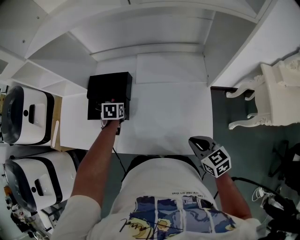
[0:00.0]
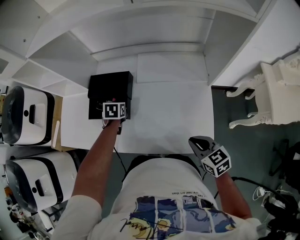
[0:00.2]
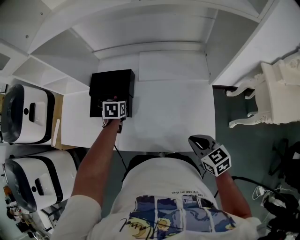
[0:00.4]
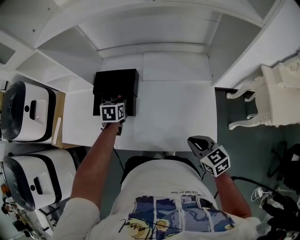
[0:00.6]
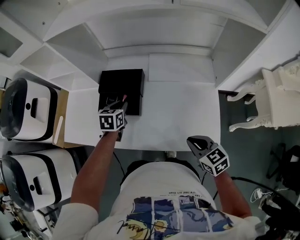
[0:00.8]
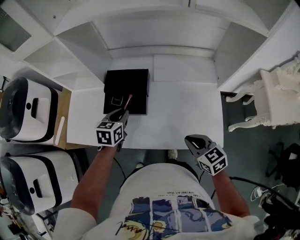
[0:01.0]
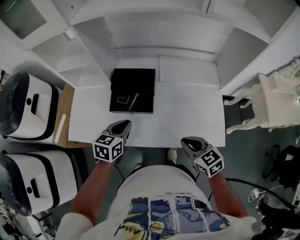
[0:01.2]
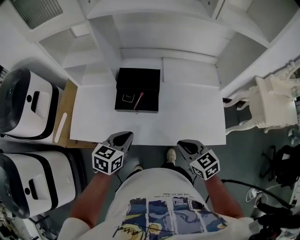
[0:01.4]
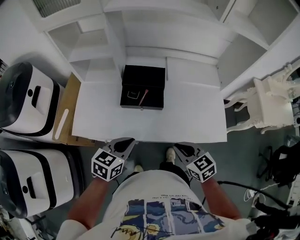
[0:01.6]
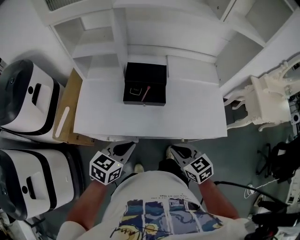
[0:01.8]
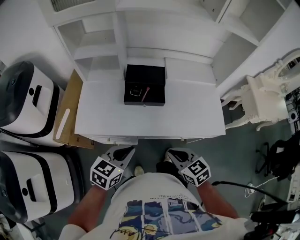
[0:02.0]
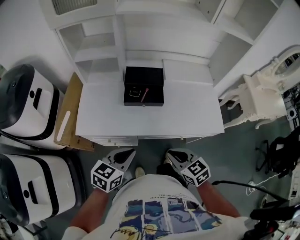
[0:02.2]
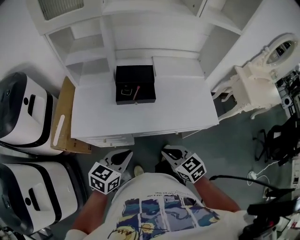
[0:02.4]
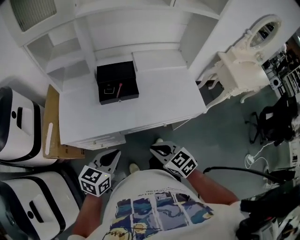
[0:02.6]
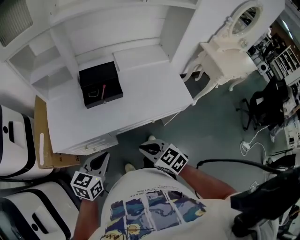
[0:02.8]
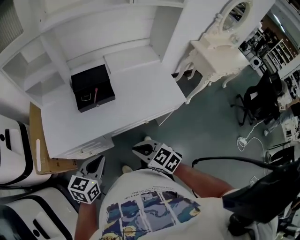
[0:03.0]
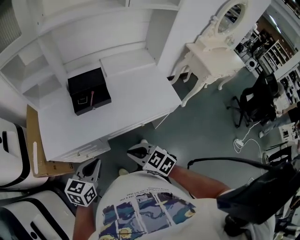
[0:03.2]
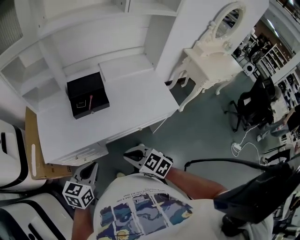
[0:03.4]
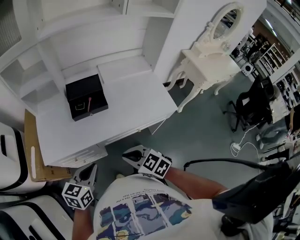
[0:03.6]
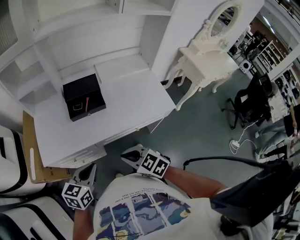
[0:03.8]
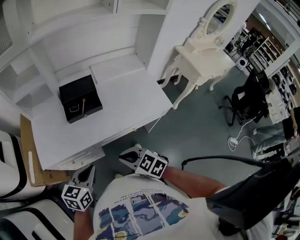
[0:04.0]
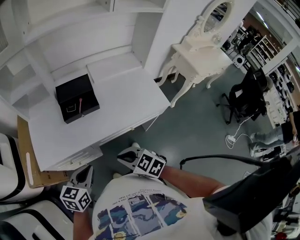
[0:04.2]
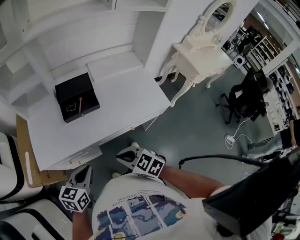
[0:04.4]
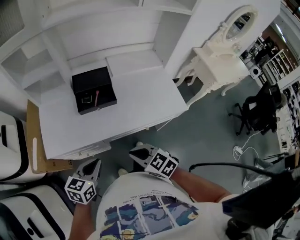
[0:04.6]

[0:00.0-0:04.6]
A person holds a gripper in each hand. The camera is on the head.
0:00.0 to 0:01.6: The right gripper shifts some 25 cm to the left; the left gripper goes some 35 cm backward, upward and to the left, and rotates approximately 40 degrees.
0:01.6 to 0:03.0: The right gripper goes about 15 cm backward and to the left; the left gripper shifts some 10 cm backward.
0:03.0 to 0:04.6: The grippers move only a little.

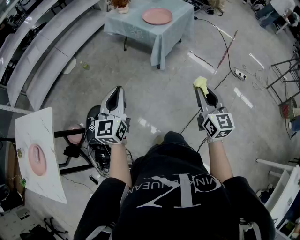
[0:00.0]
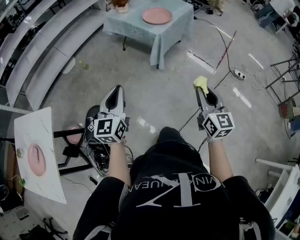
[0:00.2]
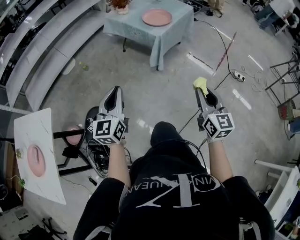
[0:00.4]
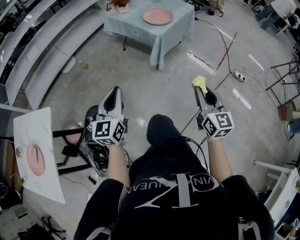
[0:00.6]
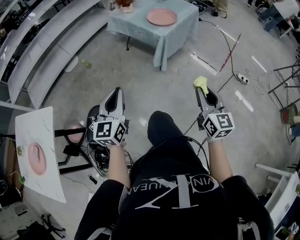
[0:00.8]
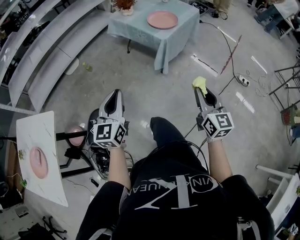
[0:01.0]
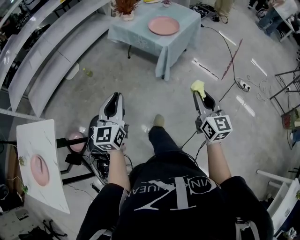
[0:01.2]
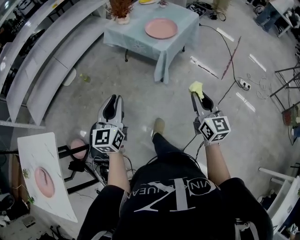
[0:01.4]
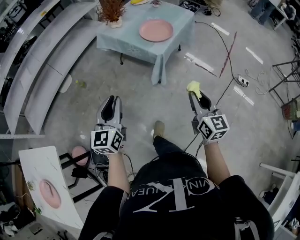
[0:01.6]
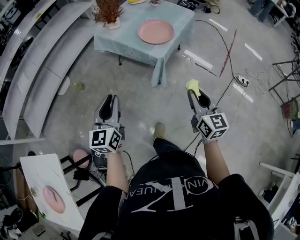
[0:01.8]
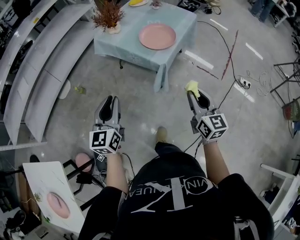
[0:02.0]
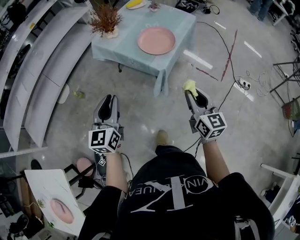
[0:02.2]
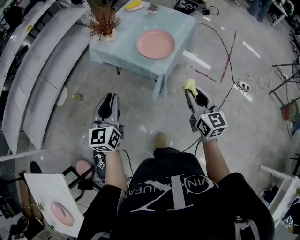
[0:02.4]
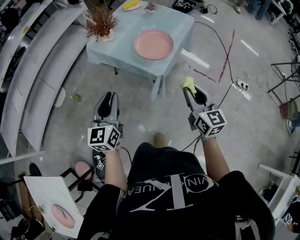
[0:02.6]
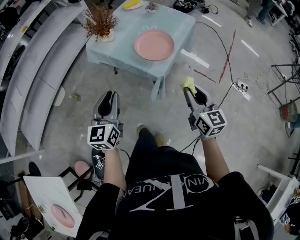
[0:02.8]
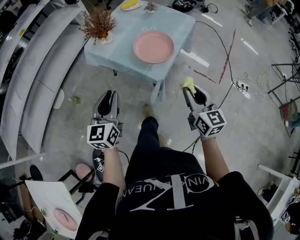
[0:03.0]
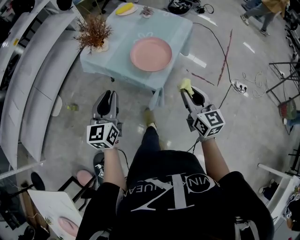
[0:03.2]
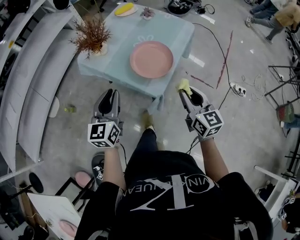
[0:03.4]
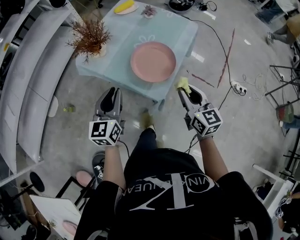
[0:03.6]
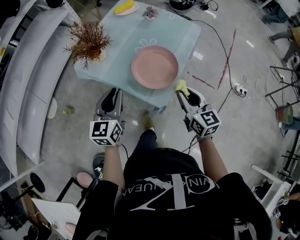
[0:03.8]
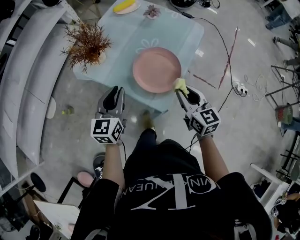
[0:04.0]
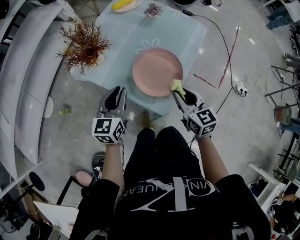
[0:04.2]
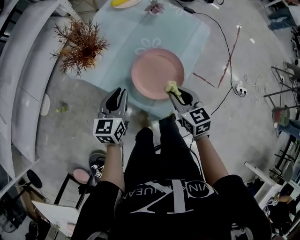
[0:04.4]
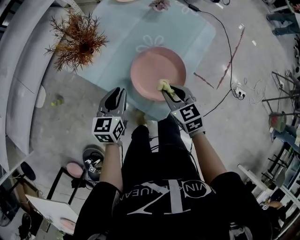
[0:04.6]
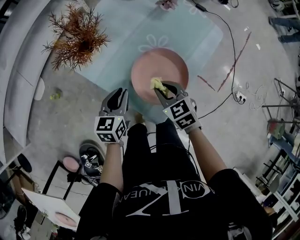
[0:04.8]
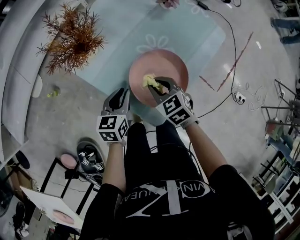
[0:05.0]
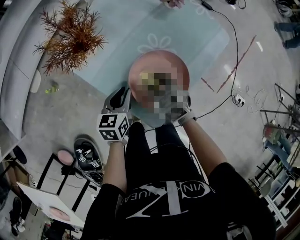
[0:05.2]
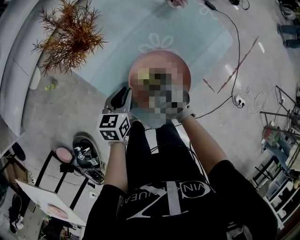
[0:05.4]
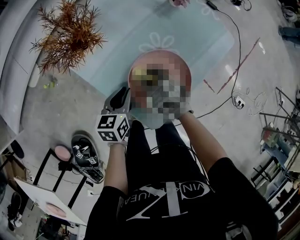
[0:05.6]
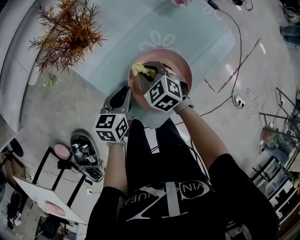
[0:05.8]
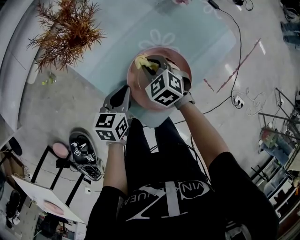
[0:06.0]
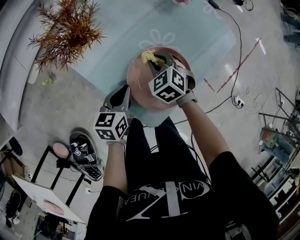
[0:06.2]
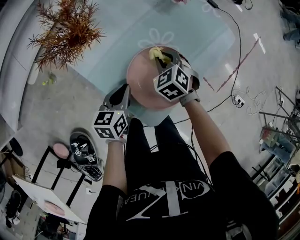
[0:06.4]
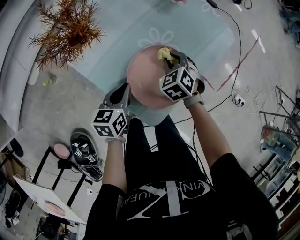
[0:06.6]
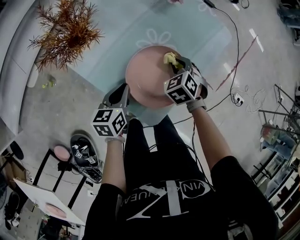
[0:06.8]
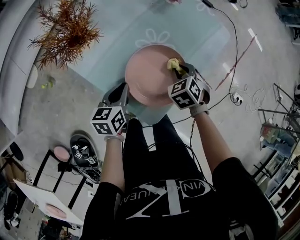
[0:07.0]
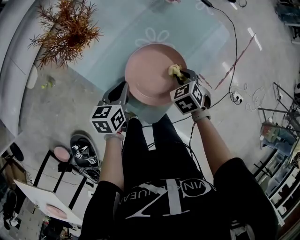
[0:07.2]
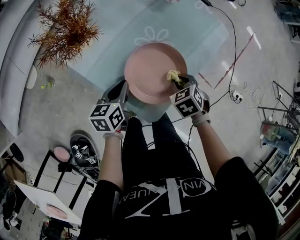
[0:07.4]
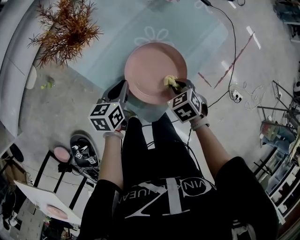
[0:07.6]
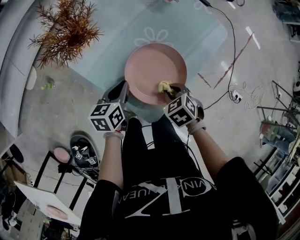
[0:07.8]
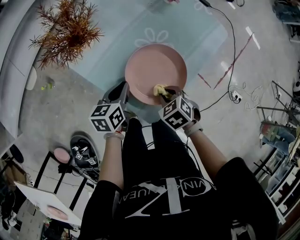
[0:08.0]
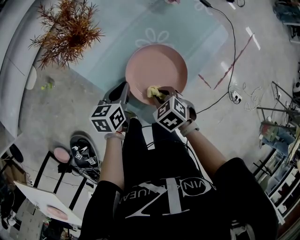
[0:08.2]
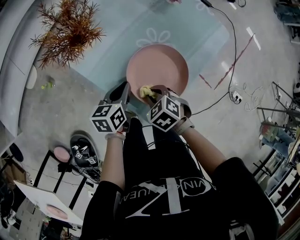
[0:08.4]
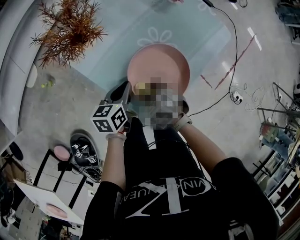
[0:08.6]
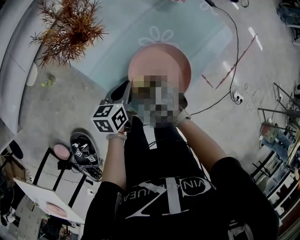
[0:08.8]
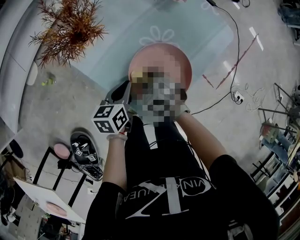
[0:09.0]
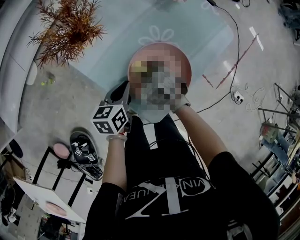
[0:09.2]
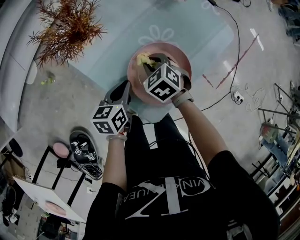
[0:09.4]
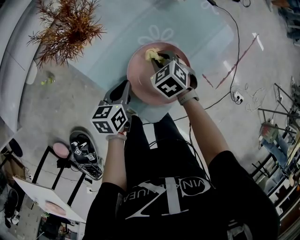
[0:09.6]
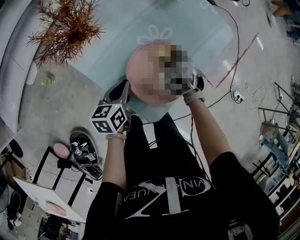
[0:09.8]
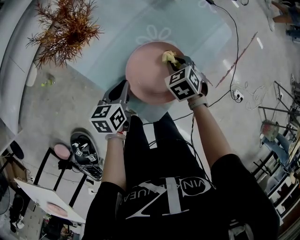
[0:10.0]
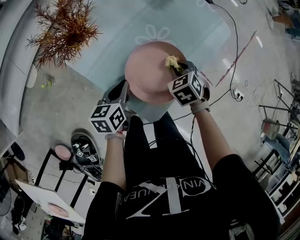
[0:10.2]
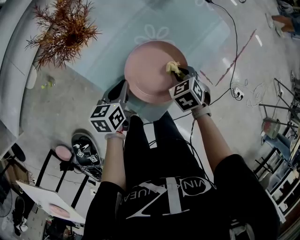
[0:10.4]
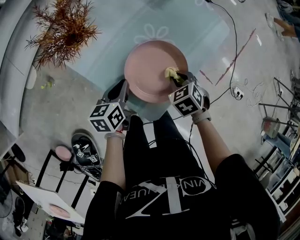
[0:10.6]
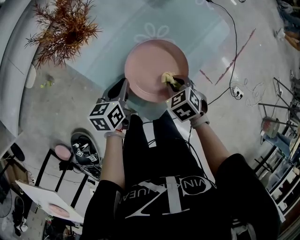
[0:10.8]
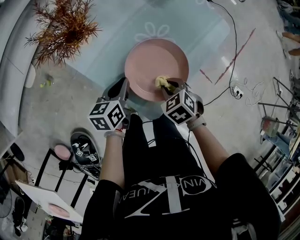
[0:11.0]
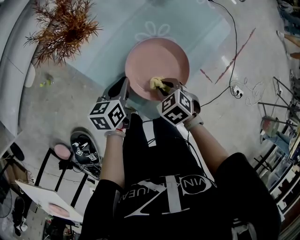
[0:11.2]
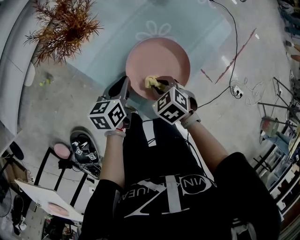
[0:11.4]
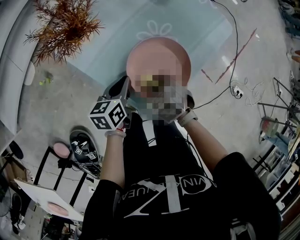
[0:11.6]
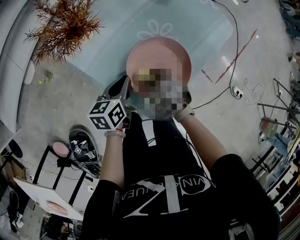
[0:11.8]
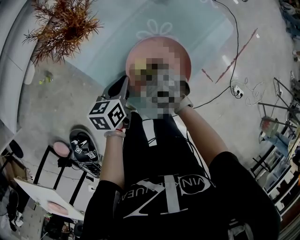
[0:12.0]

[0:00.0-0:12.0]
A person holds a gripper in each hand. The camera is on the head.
0:00.0 to 0:01.6: The grippers both shift forward by roughly 20 cm.
0:01.6 to 0:03.0: The two grippers go approximately 25 cm forward.
0:03.0 to 0:04.4: The two grippers go approximately 30 cm forward and downward. The right gripper rotates some 30 degrees.
0:04.4 to 0:06.0: The left gripper moves downward, some 10 cm, and swivels some 20 degrees. The right gripper shifts roughly 20 cm forward, downward and to the left, and rotates around the line of its fingers by roughly 40 degrees, counterclockwise from behind.
0:06.0 to 0:07.6: The right gripper moves to the right and backward, some 15 cm, and turns by about 30 degrees.
0:07.6 to 0:09.0: The right gripper travels to the left and forward by roughly 15 cm, and changes its angle by about 20 degrees.
0:09.0 to 0:10.4: The right gripper shifts approximately 15 cm to the right, and rotates some 20 degrees.
0:10.4 to 0:12.0: The right gripper moves to the left, approximately 15 cm.

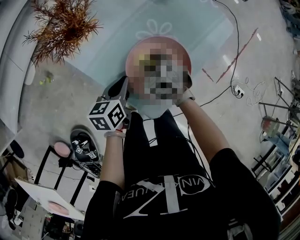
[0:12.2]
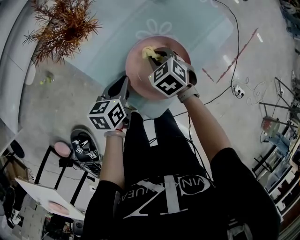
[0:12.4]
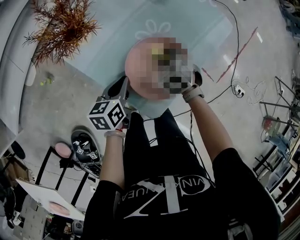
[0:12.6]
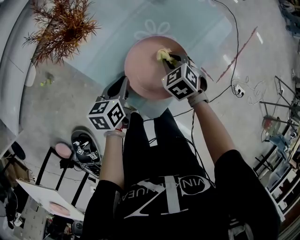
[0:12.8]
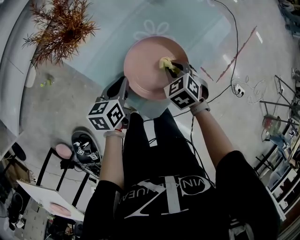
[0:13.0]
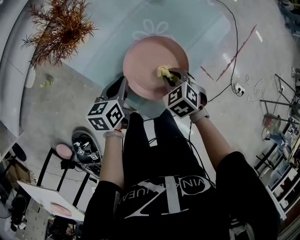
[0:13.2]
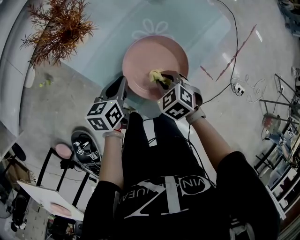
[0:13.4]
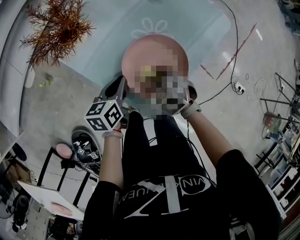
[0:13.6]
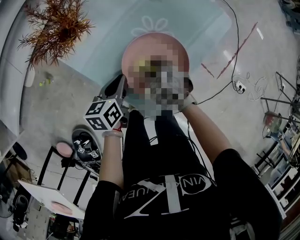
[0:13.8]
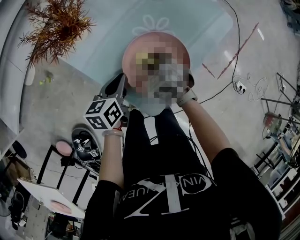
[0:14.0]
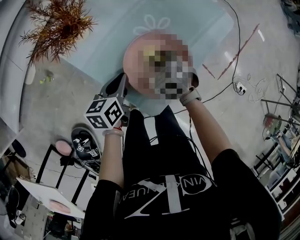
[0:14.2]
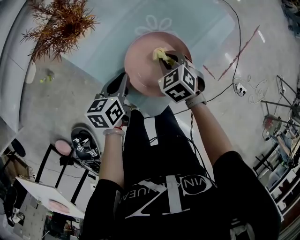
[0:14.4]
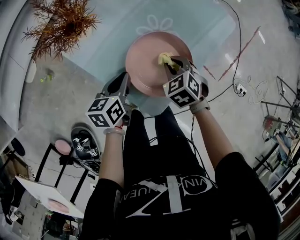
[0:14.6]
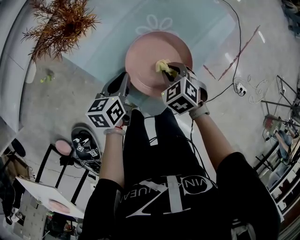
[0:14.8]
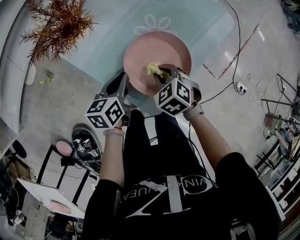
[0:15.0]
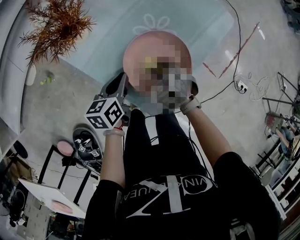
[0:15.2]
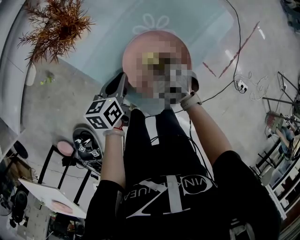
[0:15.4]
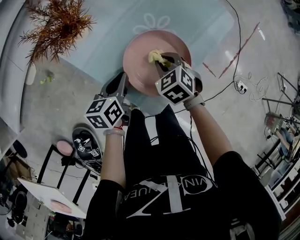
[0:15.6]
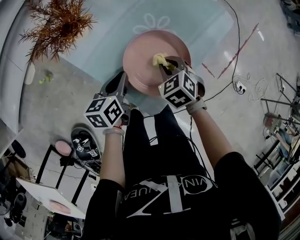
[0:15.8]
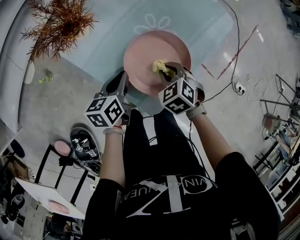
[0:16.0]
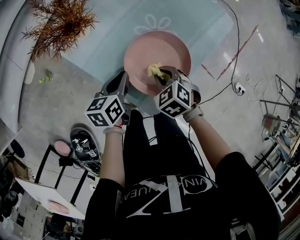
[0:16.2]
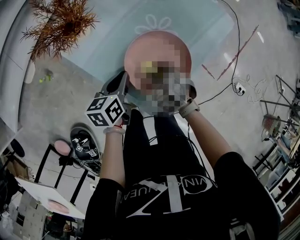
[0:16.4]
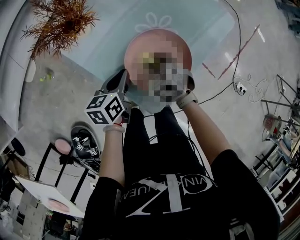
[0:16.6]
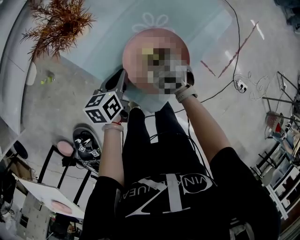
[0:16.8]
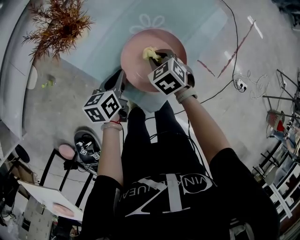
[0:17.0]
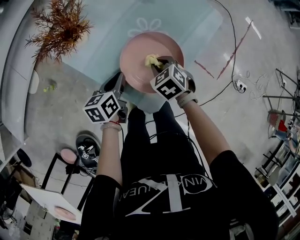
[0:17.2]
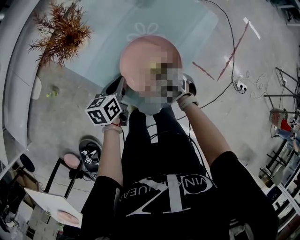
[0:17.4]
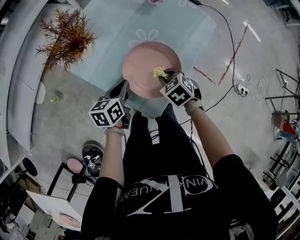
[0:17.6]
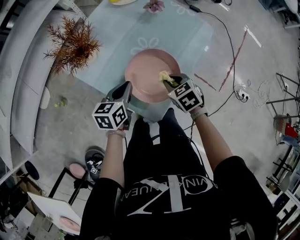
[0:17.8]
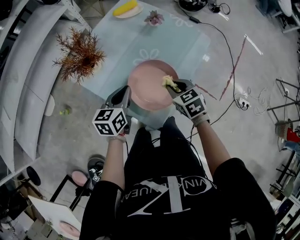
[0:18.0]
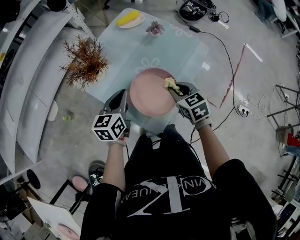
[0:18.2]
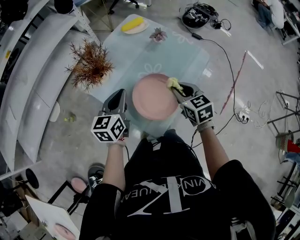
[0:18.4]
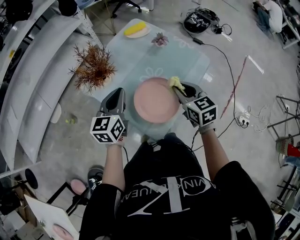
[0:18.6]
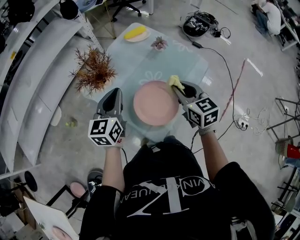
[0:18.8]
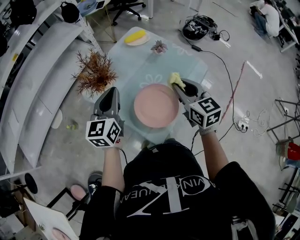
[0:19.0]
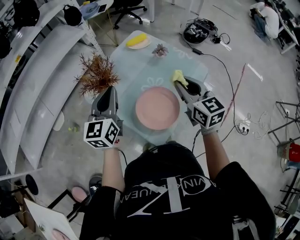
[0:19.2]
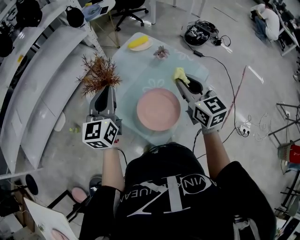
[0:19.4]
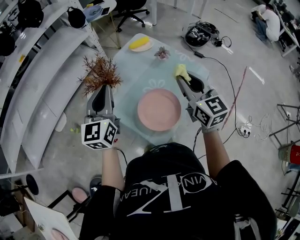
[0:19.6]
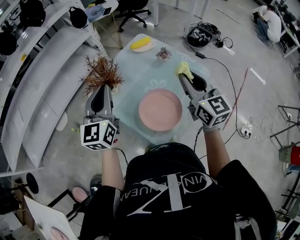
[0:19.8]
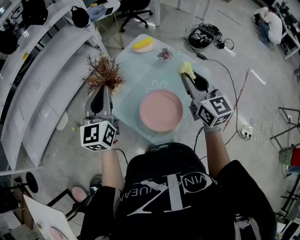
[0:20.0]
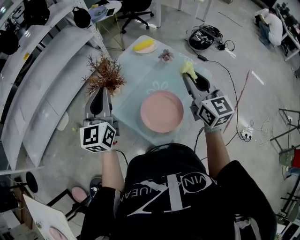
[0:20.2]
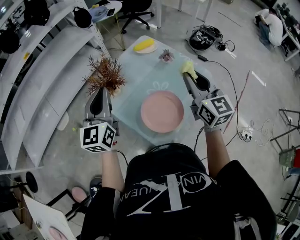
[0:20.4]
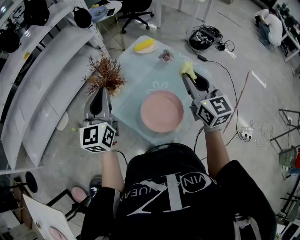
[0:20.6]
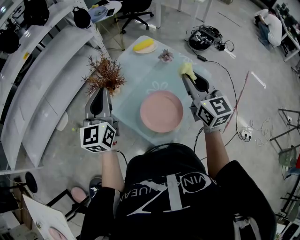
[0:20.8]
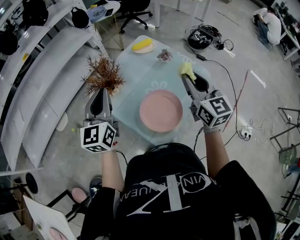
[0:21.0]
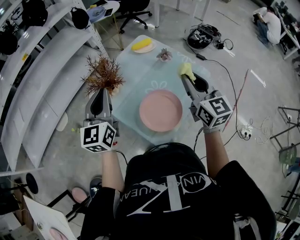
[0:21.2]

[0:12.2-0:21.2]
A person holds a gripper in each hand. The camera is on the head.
0:12.2 to 0:13.8: The right gripper reaches about 10 cm to the right, then returns.
0:15.2 to 0:16.6: The grippers make only small movements.
0:16.6 to 0:18.2: The left gripper is displaced upward by about 15 cm, and swivels approximately 20 degrees; the right gripper moves upward and to the right, about 20 cm, and swivels approximately 30 degrees.
0:18.2 to 0:19.8: The two grippers go about 20 cm upward. The left gripper changes its angle by about 30 degrees, while the right gripper tips its fingers upward by some 40 degrees.
0:19.8 to 0:21.2: The grippers stay close to where they were, moving slightly.
